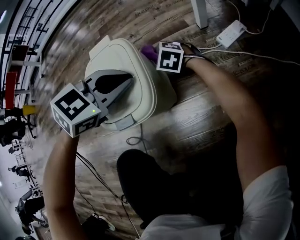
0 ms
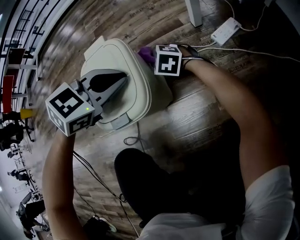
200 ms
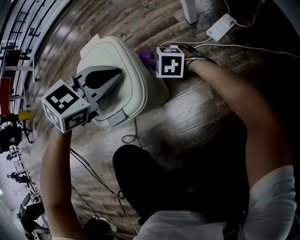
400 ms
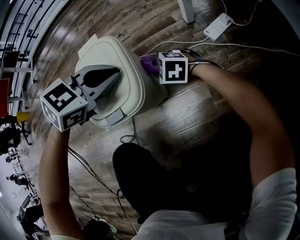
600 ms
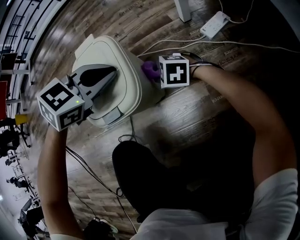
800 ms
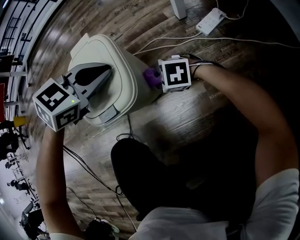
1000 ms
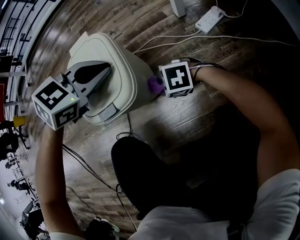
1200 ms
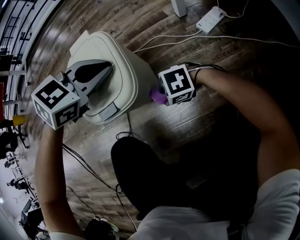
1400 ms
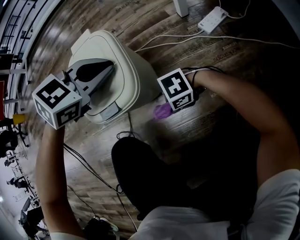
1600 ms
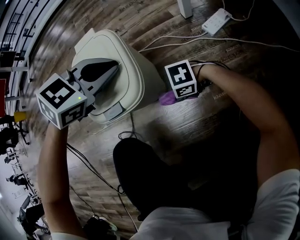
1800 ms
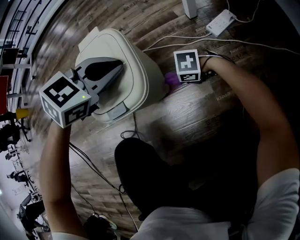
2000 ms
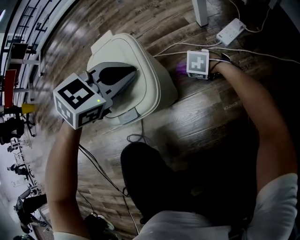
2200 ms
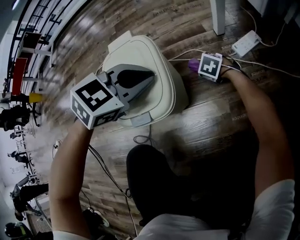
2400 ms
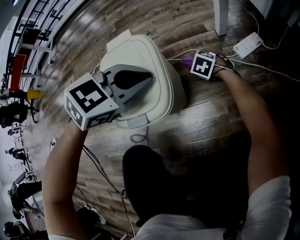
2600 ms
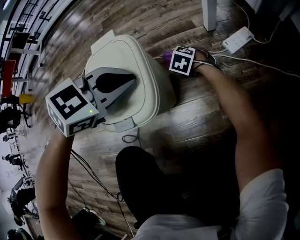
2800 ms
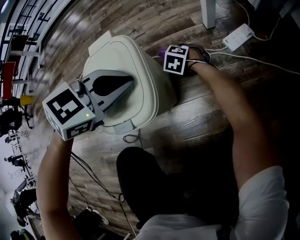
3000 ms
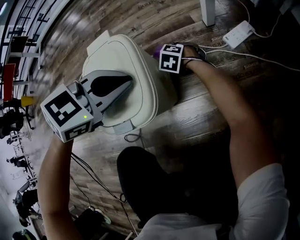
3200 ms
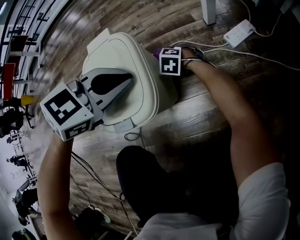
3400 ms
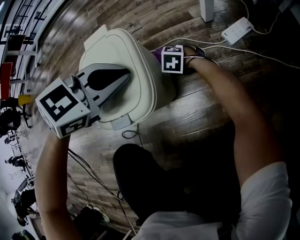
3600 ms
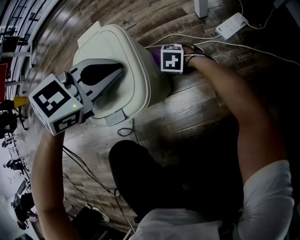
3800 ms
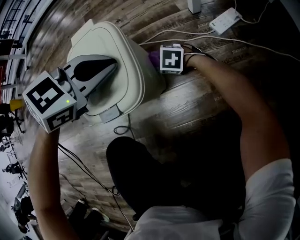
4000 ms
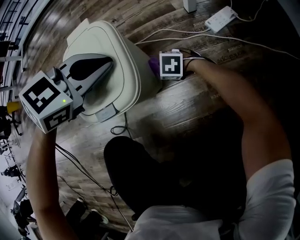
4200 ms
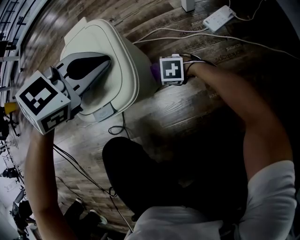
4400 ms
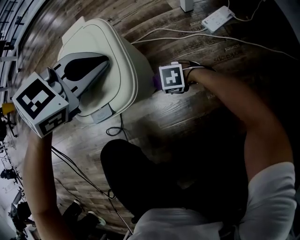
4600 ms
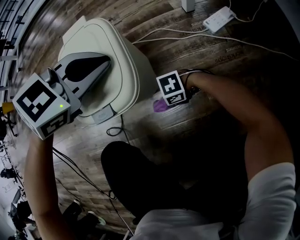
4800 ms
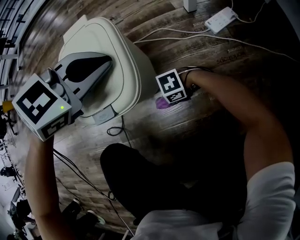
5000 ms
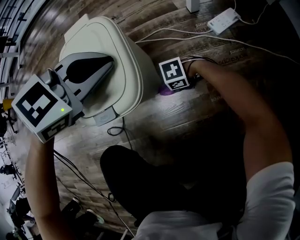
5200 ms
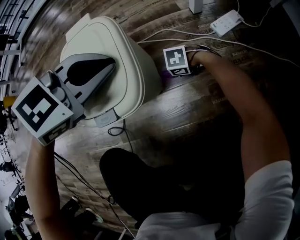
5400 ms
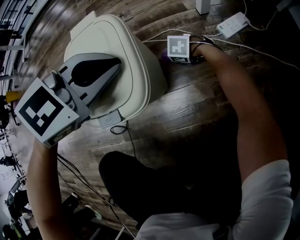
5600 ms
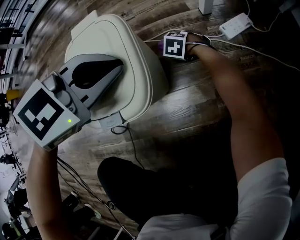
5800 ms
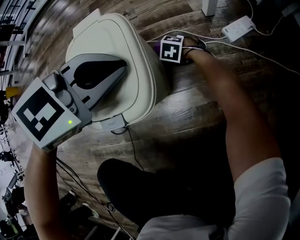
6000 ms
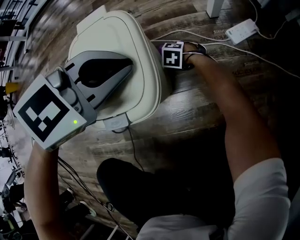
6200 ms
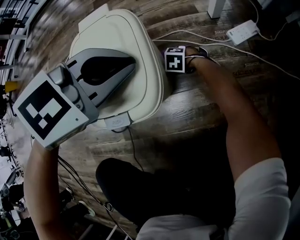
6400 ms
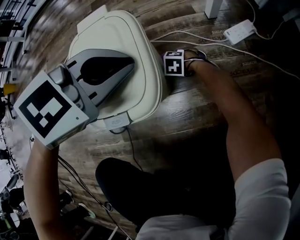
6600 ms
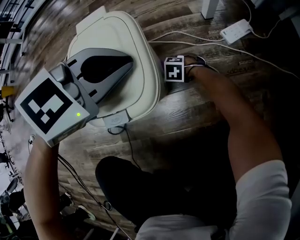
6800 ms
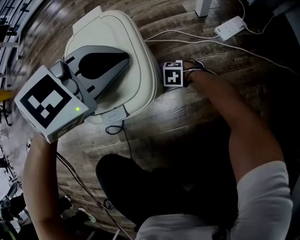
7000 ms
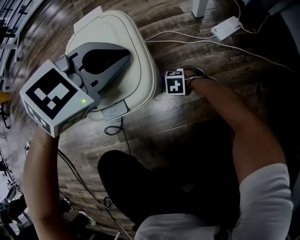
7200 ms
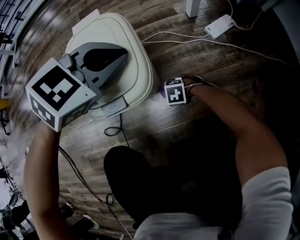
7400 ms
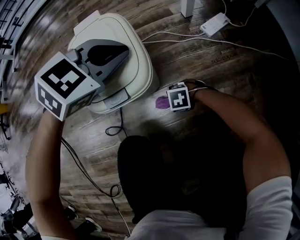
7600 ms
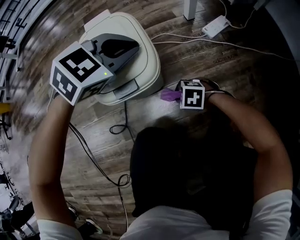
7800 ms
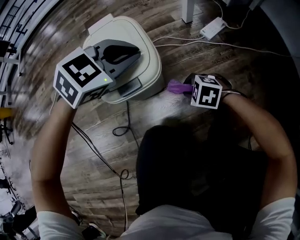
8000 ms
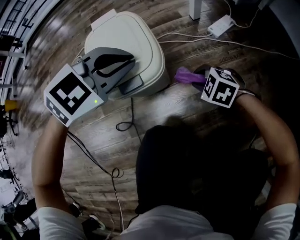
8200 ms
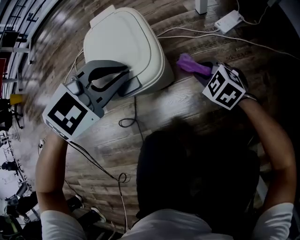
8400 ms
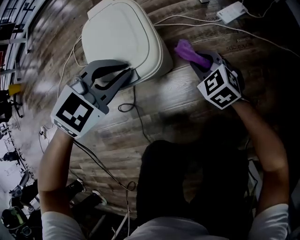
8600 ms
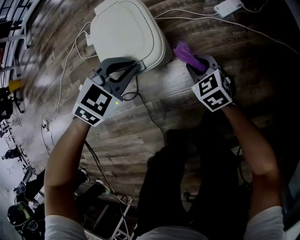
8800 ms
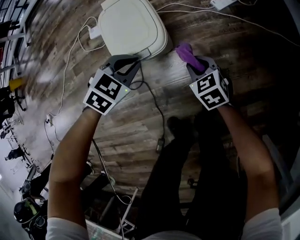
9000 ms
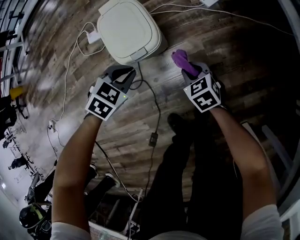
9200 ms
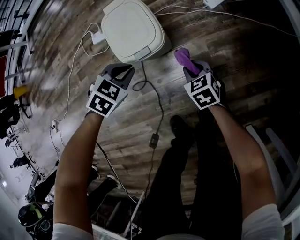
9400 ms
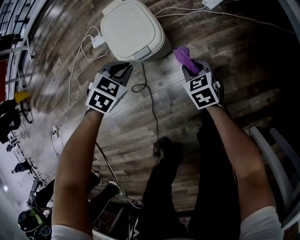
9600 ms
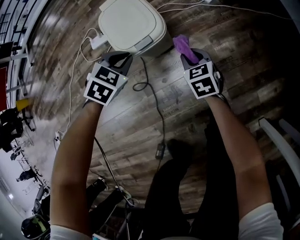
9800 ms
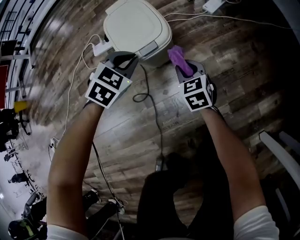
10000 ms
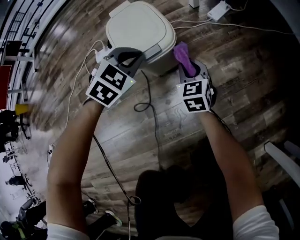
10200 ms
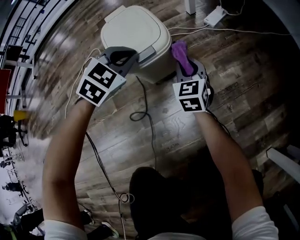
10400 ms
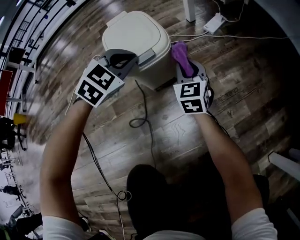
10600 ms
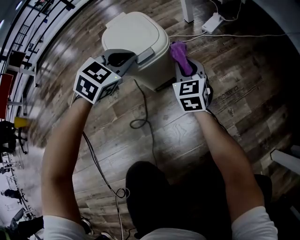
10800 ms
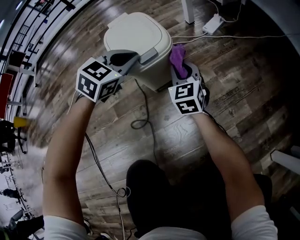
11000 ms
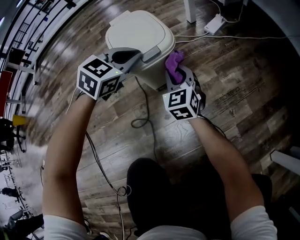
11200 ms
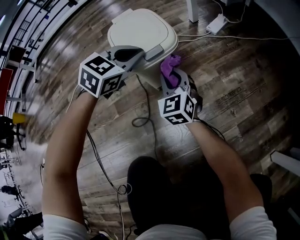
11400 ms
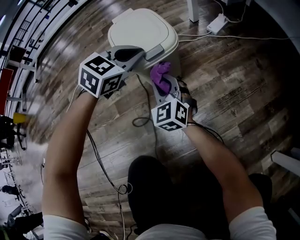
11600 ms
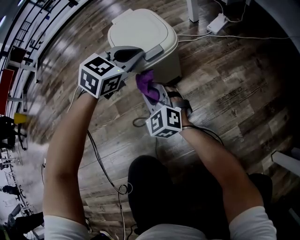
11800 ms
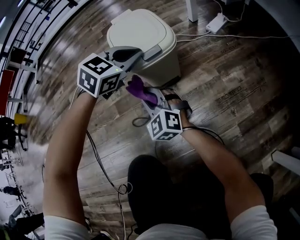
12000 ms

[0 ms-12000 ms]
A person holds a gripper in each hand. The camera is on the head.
0 ms to 1600 ms: The right gripper moves about 30 cm, and turns by roughly 50 degrees.
1600 ms to 3000 ms: The right gripper changes place by about 30 cm, and rotates roughly 60 degrees.
3000 ms to 4400 ms: The right gripper shifts by roughly 20 cm, and changes its angle by about 30 degrees.
4400 ms to 6000 ms: The right gripper moves roughly 15 cm, and turns by approximately 20 degrees.
6000 ms to 7600 ms: The right gripper shifts by about 30 cm, and turns by some 30 degrees.
7600 ms to 9000 ms: The right gripper goes approximately 25 cm upward, and swivels some 60 degrees, while the left gripper moves about 15 cm.
9000 ms to 10400 ms: The left gripper turns by approximately 20 degrees. Meanwhile the right gripper is displaced to the left by roughly 5 cm, and swivels some 40 degrees.
10400 ms to 12000 ms: The right gripper heads to the left and backward, covering roughly 20 cm, and swivels approximately 40 degrees.

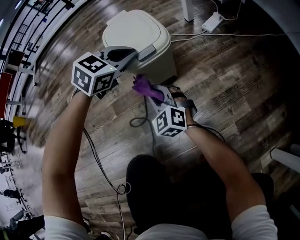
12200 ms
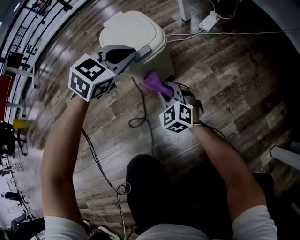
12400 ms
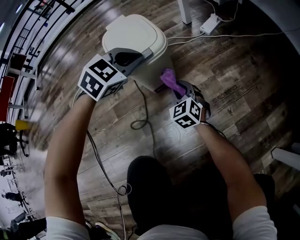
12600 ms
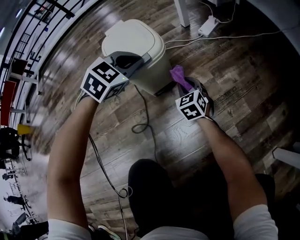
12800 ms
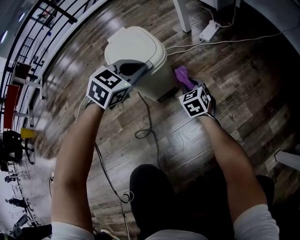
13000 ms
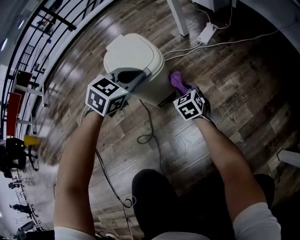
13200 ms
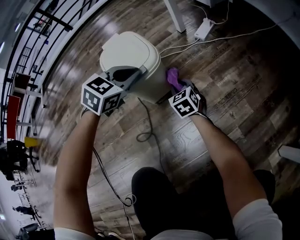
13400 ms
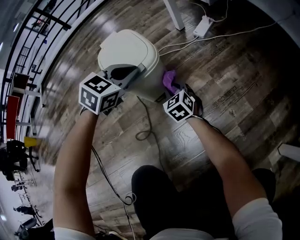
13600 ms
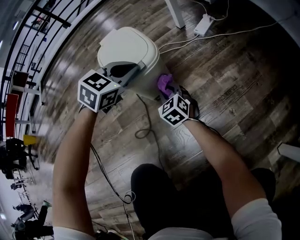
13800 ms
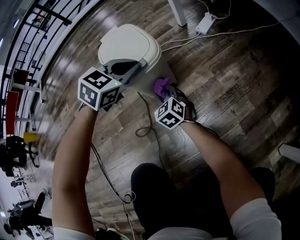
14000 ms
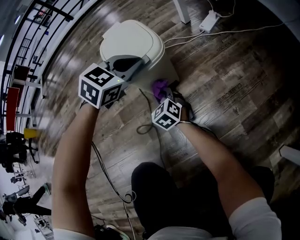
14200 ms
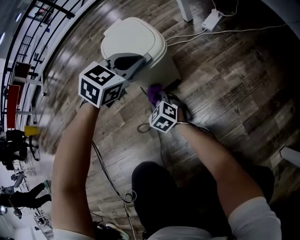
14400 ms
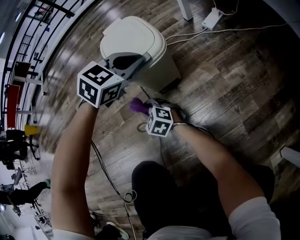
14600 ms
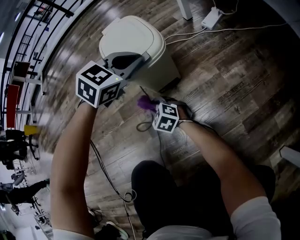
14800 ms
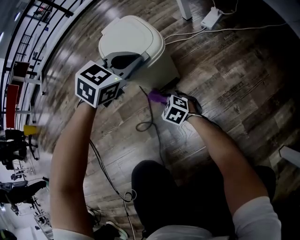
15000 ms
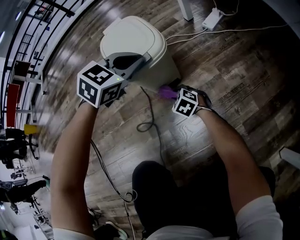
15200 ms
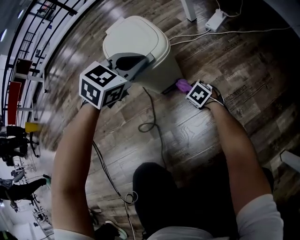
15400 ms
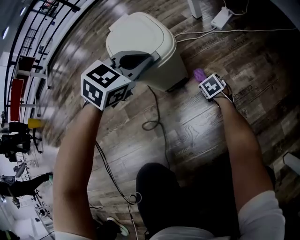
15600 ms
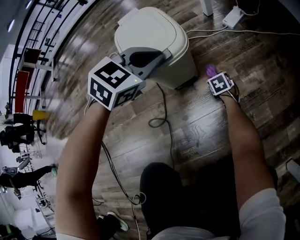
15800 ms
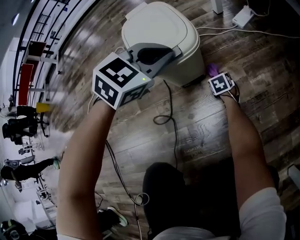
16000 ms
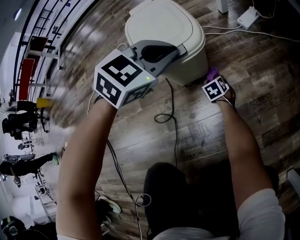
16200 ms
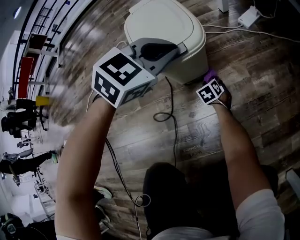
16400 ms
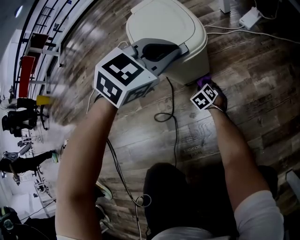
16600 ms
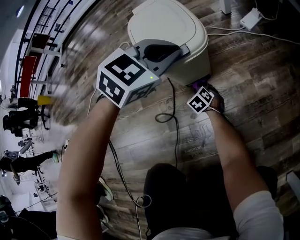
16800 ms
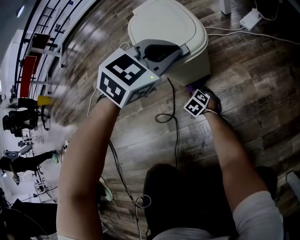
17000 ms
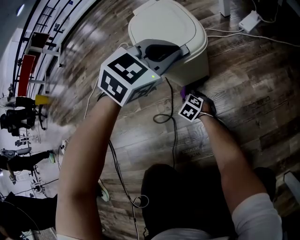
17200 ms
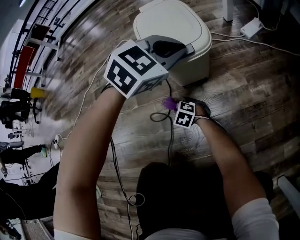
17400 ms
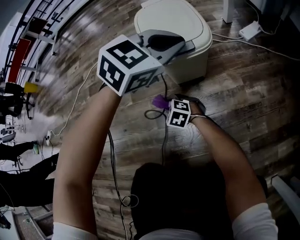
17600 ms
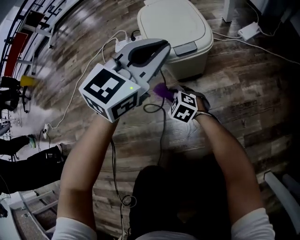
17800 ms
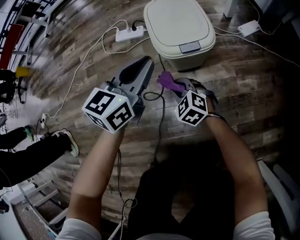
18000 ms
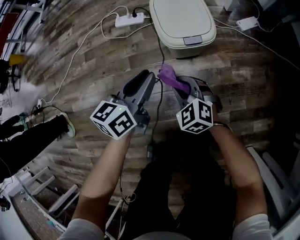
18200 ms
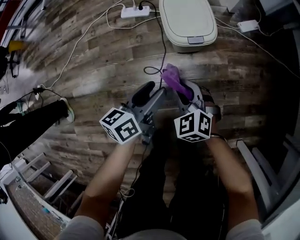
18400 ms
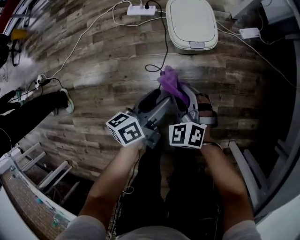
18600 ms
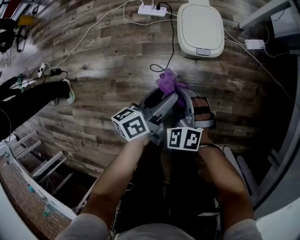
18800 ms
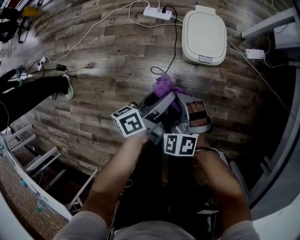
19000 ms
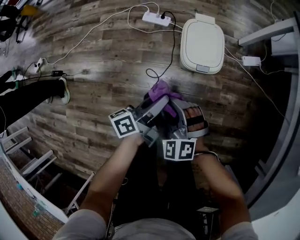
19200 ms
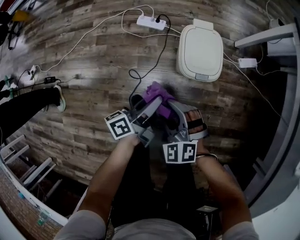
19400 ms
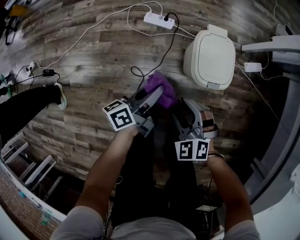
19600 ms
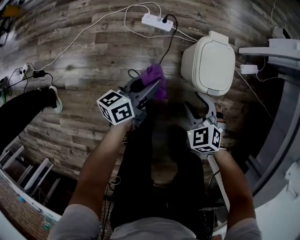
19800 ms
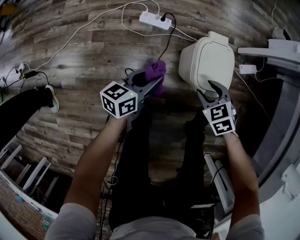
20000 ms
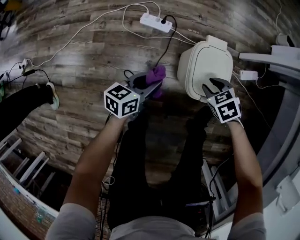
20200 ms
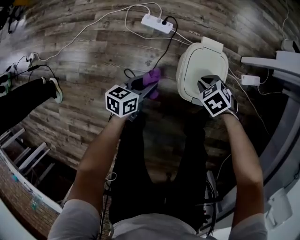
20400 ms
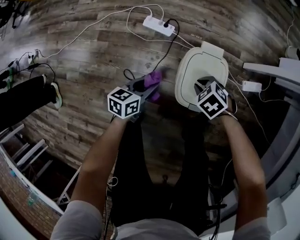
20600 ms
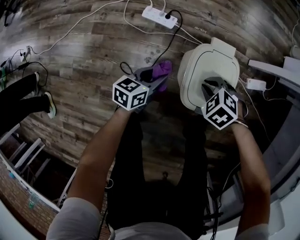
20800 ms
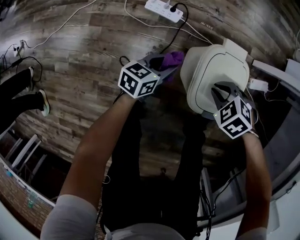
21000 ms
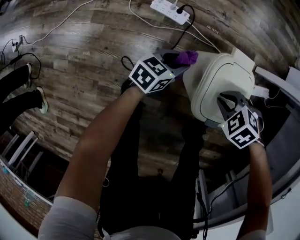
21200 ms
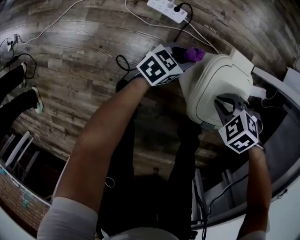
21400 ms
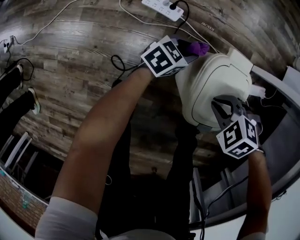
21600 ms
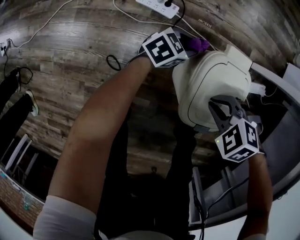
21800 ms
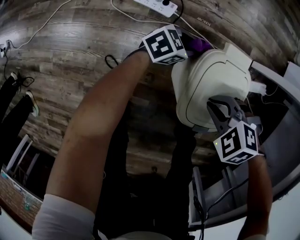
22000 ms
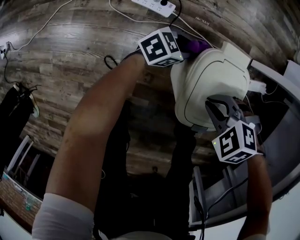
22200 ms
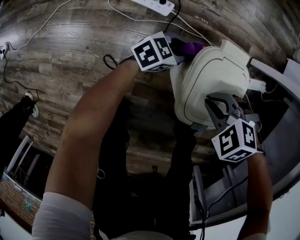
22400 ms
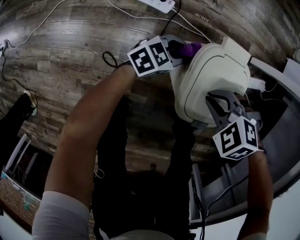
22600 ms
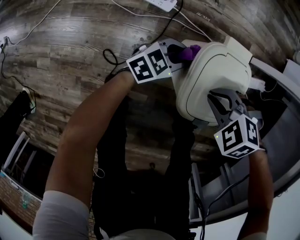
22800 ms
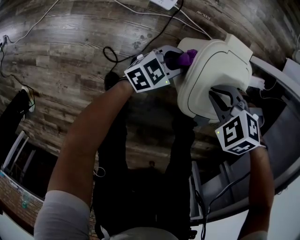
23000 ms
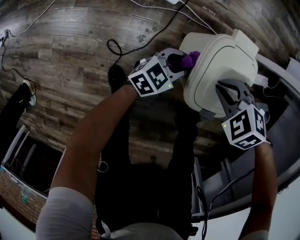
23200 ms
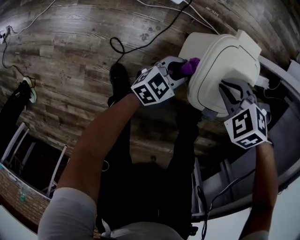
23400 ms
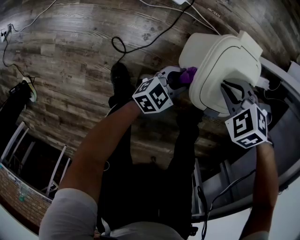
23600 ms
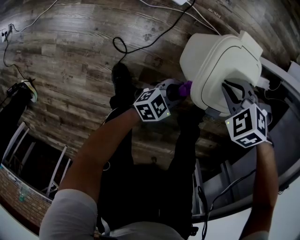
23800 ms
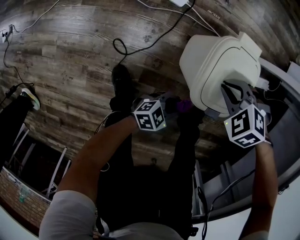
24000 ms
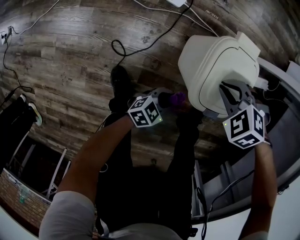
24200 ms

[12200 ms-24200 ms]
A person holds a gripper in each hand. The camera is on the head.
12200 ms to 13800 ms: The right gripper travels forward by approximately 10 cm, and swivels about 20 degrees.
13800 ms to 15200 ms: The right gripper travels downward by approximately 10 cm, moves some 15 cm to the left and comes back, and turns by about 30 degrees.
15200 ms to 16600 ms: The right gripper moves downward and forward, roughly 10 cm, and travels to the right and back again, about 10 cm each way.
16600 ms to 18200 ms: The right gripper shifts some 30 cm upward, and turns by some 40 degrees; the left gripper changes place by approximately 20 cm, and rolls counterclockwise, seen from behind, by approximately 60 degrees.
18200 ms to 19800 ms: The right gripper moves upward, forward and to the left, approximately 20 cm, and opens its fingers. The left gripper moves to the left and forward, some 20 cm, rotates approximately 20 degrees, and opens, then closes again.
19800 ms to 21200 ms: The left gripper heads downward, covering roughly 20 cm, and turns by roughly 30 degrees. Meanwhile the right gripper moves approximately 20 cm, changes its angle by approximately 40 degrees, and closes its fingers.
21200 ms to 22600 ms: The left gripper moves about 10 cm, and turns by approximately 30 degrees.
22600 ms to 24200 ms: The left gripper changes place by roughly 25 cm.
